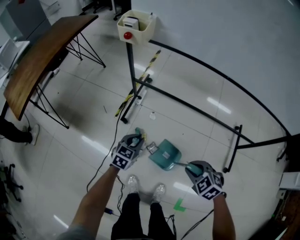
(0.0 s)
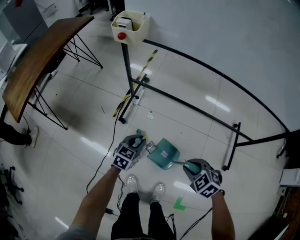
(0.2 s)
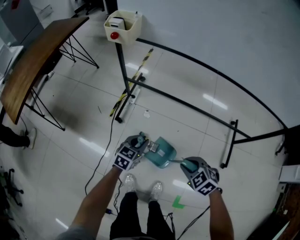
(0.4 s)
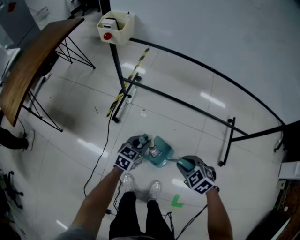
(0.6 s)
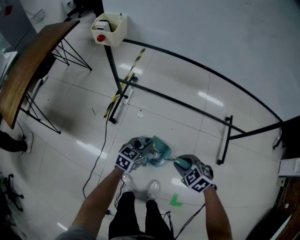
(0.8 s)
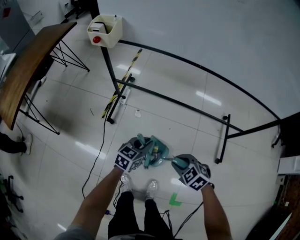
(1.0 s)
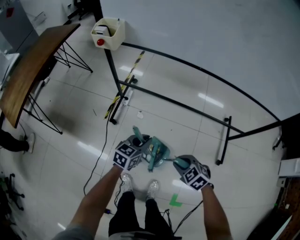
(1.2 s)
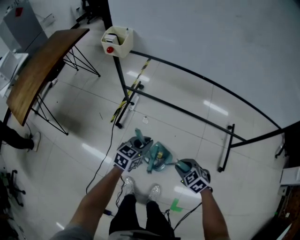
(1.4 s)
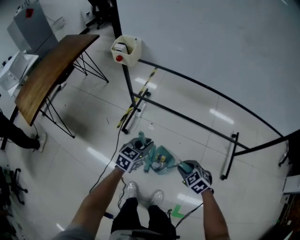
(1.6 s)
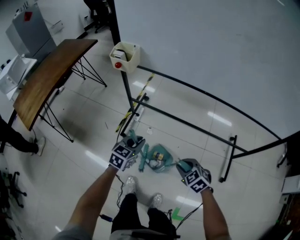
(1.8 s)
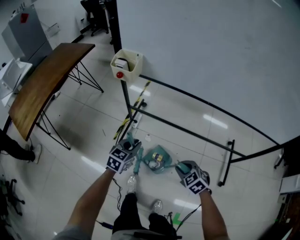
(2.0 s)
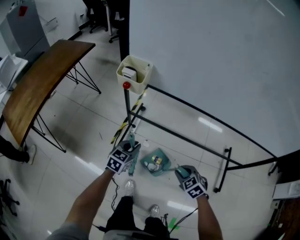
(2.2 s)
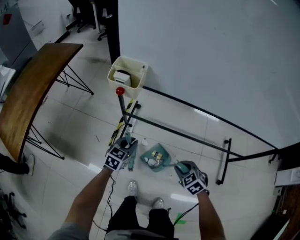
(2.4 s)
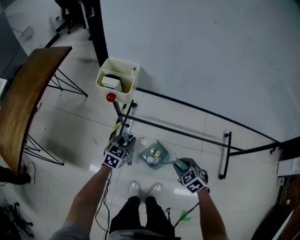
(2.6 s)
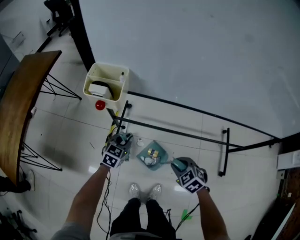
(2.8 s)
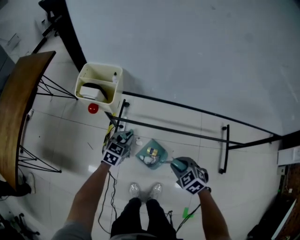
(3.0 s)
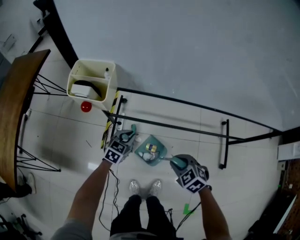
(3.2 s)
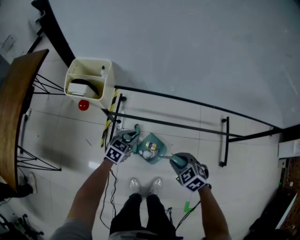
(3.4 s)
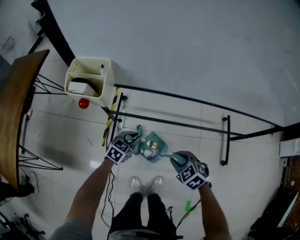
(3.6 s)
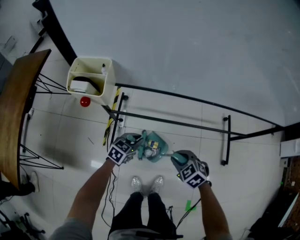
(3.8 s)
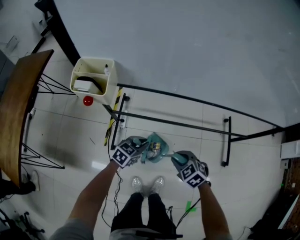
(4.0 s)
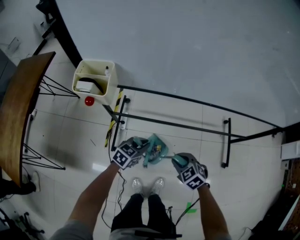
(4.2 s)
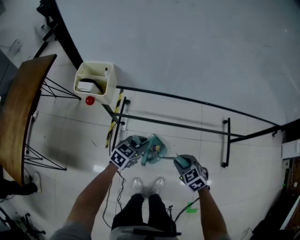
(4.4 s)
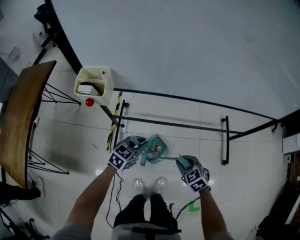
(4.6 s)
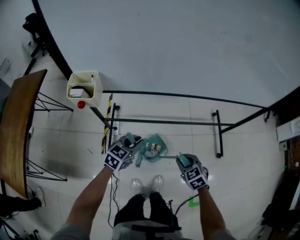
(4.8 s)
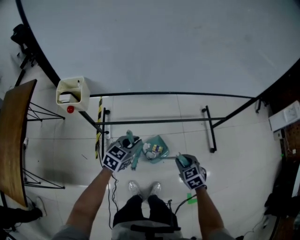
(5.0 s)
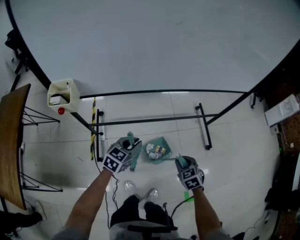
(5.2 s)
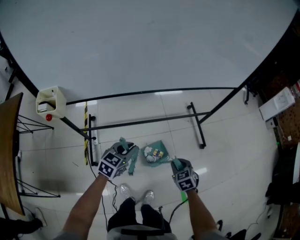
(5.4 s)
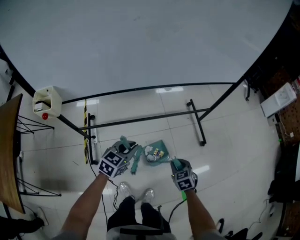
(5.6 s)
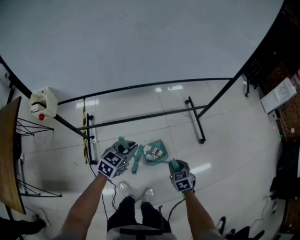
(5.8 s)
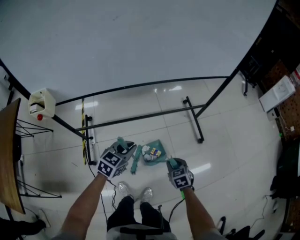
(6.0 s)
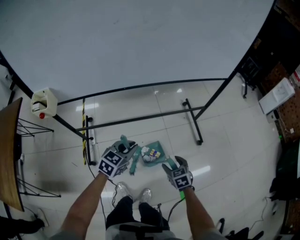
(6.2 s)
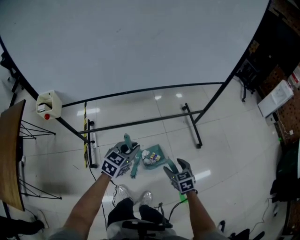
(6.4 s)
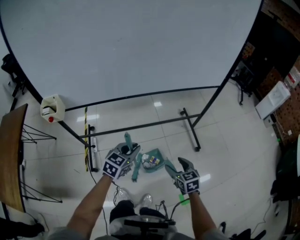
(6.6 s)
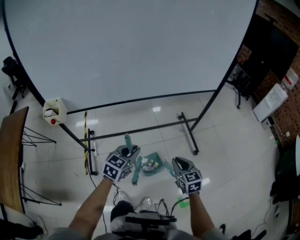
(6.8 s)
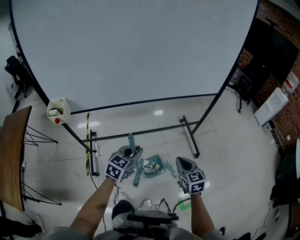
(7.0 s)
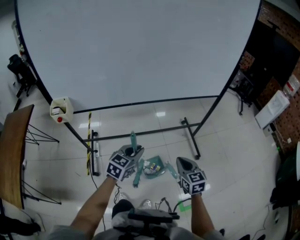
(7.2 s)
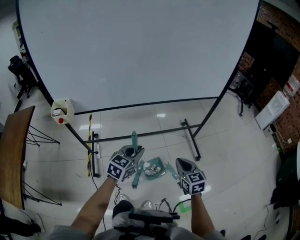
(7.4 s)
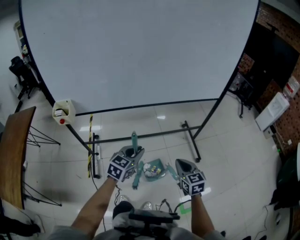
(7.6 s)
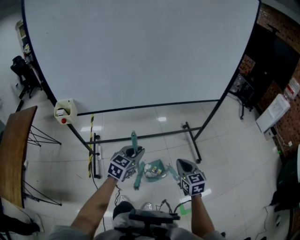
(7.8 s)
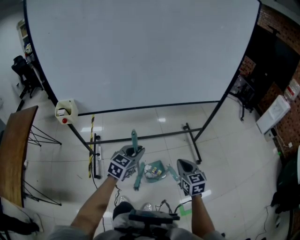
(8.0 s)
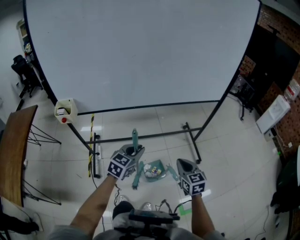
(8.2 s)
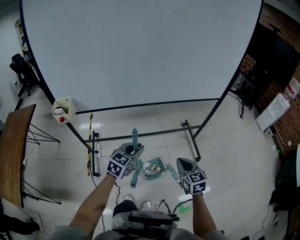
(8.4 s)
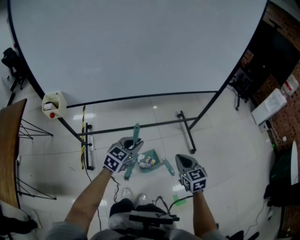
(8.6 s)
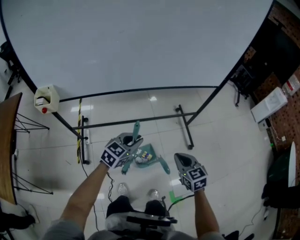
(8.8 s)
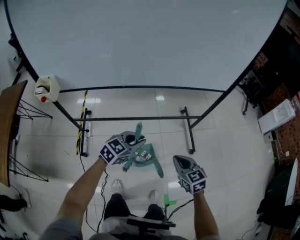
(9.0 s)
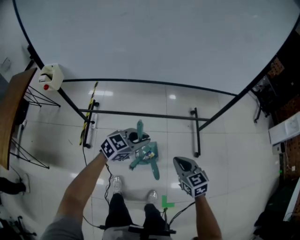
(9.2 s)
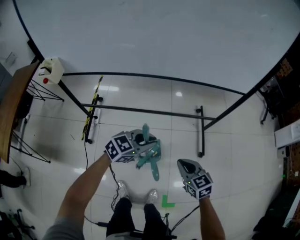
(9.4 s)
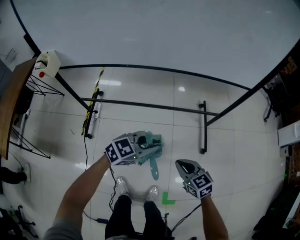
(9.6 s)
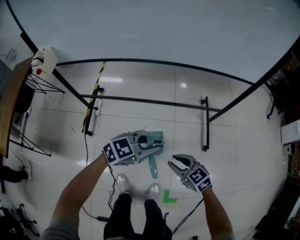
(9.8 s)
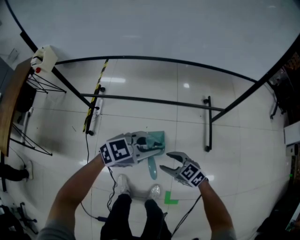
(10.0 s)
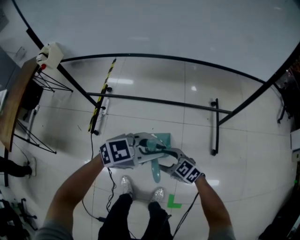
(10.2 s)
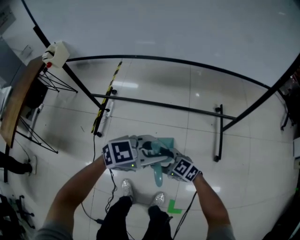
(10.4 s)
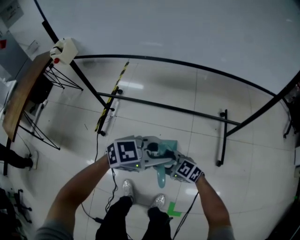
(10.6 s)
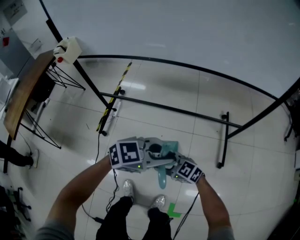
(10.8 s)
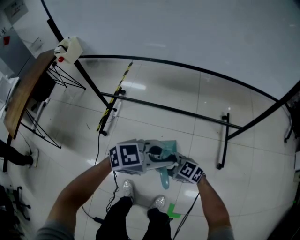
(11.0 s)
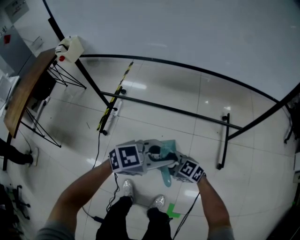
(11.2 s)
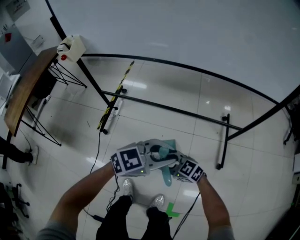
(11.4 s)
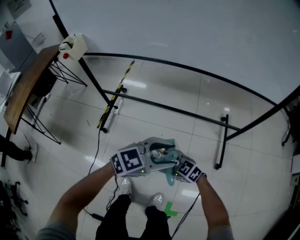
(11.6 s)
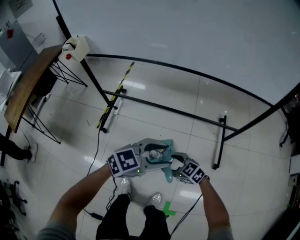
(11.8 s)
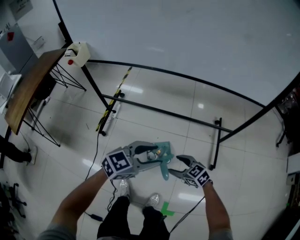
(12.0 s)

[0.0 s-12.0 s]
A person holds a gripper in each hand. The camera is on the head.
0.0 to 1.6 s: The left gripper shifts about 15 cm upward and to the right.
1.6 to 3.0 s: The grippers both shift forward and to the left by some 25 cm.
3.0 to 4.4 s: The left gripper shifts about 10 cm to the right and backward.
4.4 to 6.0 s: The left gripper shifts roughly 25 cm to the right and upward. The right gripper shifts some 25 cm to the right, and turns by about 40 degrees.
6.0 to 7.6 s: The right gripper moves upward, approximately 20 cm, turns by roughly 30 degrees, and opens, then closes once more; the left gripper travels upward by some 10 cm.
7.6 to 9.0 s: The right gripper travels to the right by some 5 cm, while the left gripper shifts about 10 cm to the right and downward.
9.0 to 10.4 s: The left gripper moves roughly 15 cm, while the right gripper moves downward, some 20 cm, swivels some 50 degrees, and opens.
10.4 to 12.0 s: The left gripper changes place by about 5 cm, changes its angle by approximately 20 degrees, and opens up. The right gripper ends up some 10 cm from where it was.

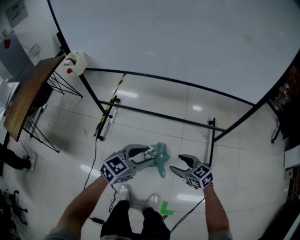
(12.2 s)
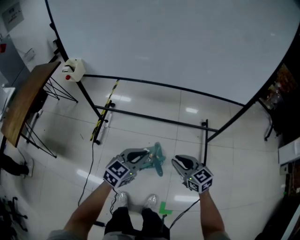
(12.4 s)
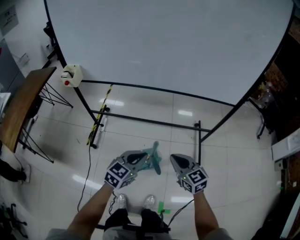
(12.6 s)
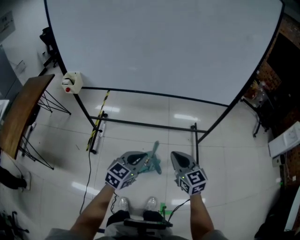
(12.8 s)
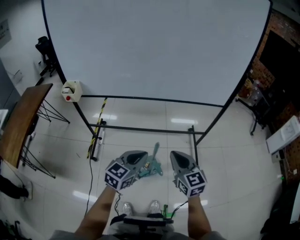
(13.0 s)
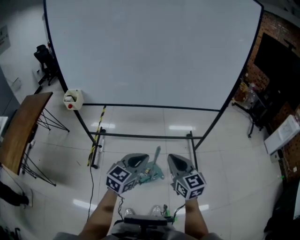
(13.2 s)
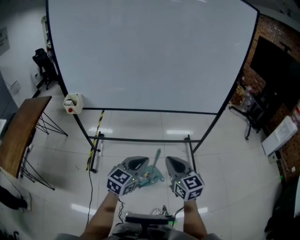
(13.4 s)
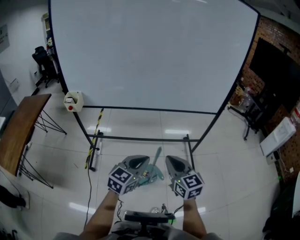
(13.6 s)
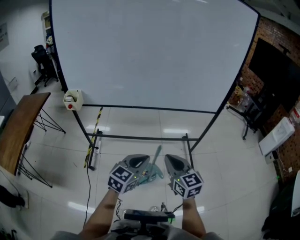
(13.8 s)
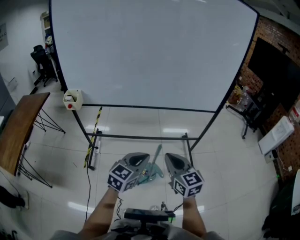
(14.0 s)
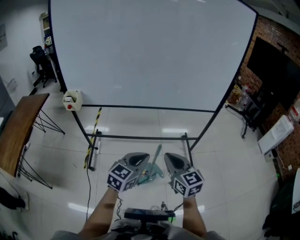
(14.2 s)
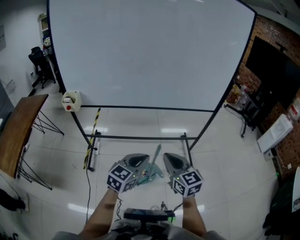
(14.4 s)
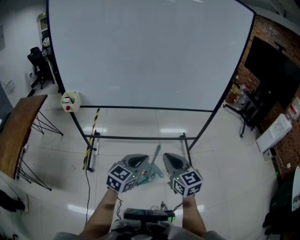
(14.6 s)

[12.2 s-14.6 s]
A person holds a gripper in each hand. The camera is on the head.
12.2 to 13.4 s: The left gripper heads upward, covering approximately 15 cm, and closes its fingers; the right gripper travels upward by about 30 cm, rotates roughly 40 degrees, and closes.
13.4 to 14.6 s: The grippers move only a little.

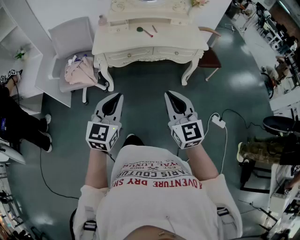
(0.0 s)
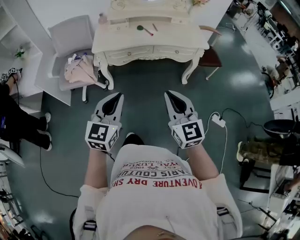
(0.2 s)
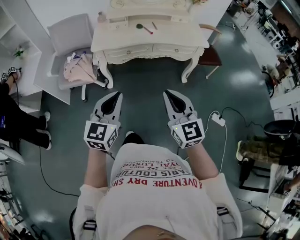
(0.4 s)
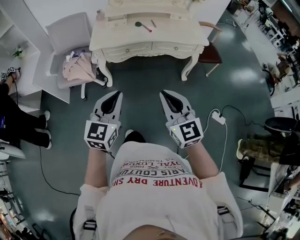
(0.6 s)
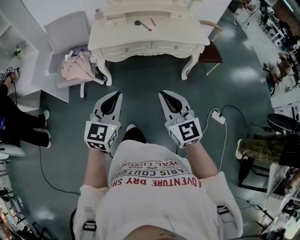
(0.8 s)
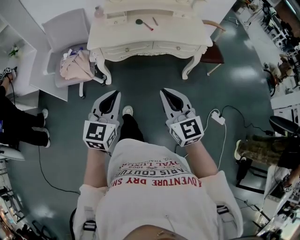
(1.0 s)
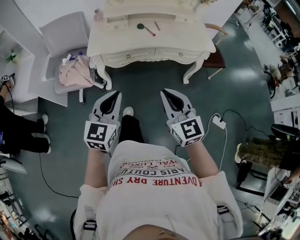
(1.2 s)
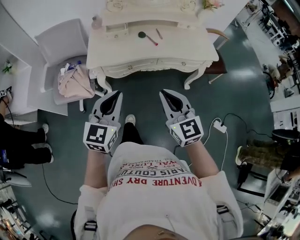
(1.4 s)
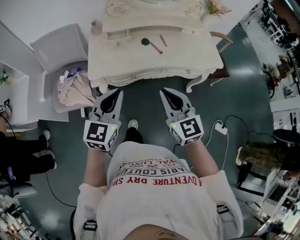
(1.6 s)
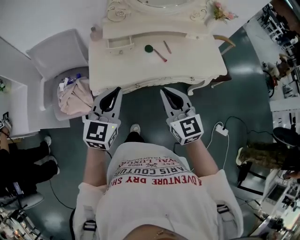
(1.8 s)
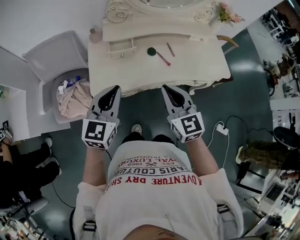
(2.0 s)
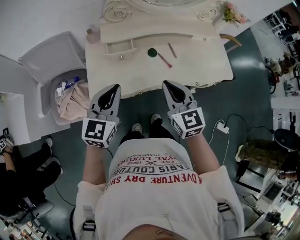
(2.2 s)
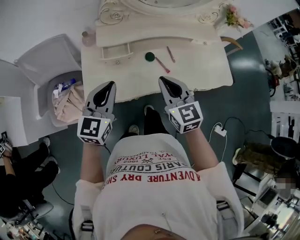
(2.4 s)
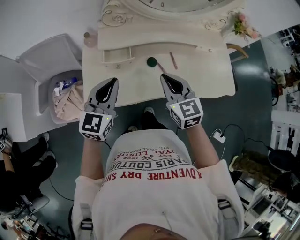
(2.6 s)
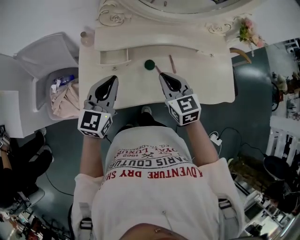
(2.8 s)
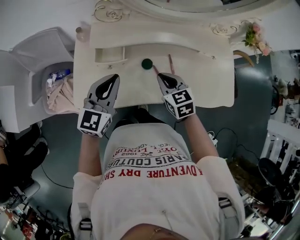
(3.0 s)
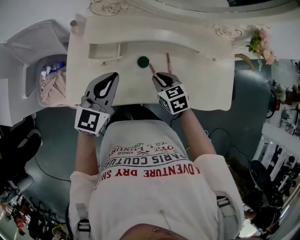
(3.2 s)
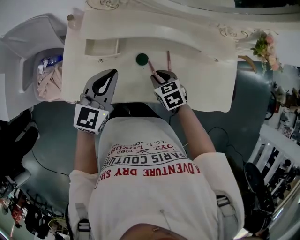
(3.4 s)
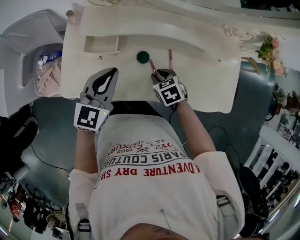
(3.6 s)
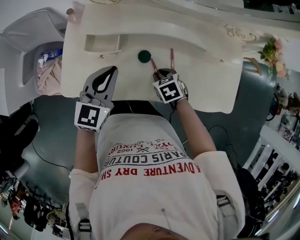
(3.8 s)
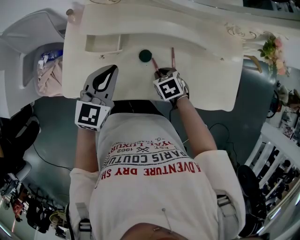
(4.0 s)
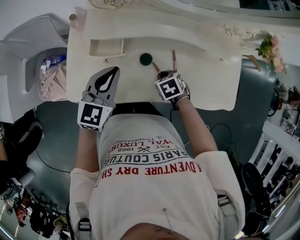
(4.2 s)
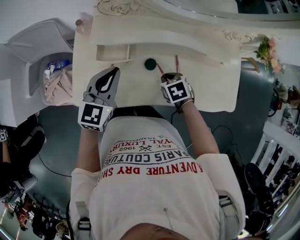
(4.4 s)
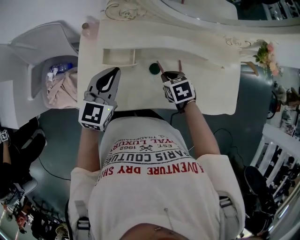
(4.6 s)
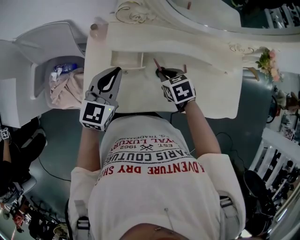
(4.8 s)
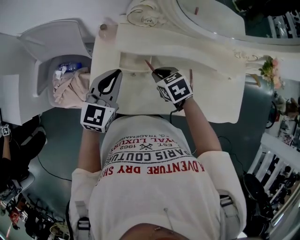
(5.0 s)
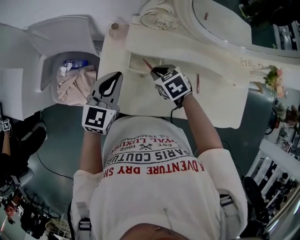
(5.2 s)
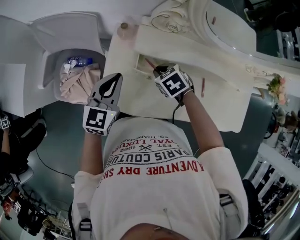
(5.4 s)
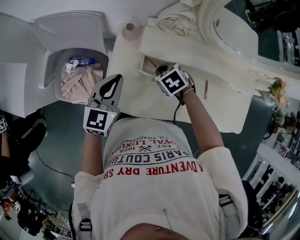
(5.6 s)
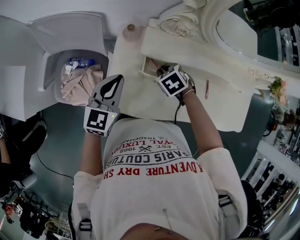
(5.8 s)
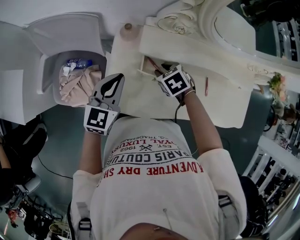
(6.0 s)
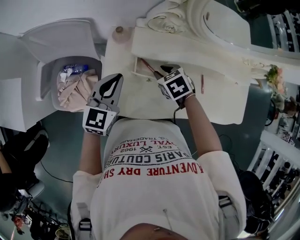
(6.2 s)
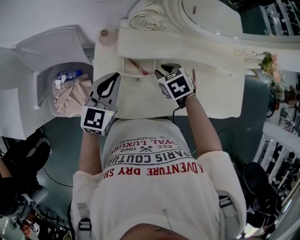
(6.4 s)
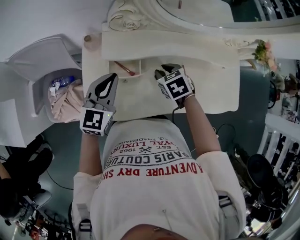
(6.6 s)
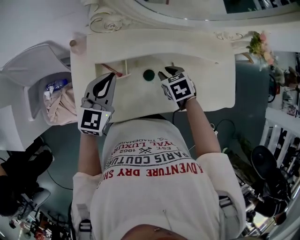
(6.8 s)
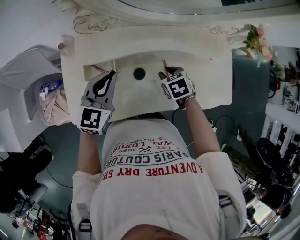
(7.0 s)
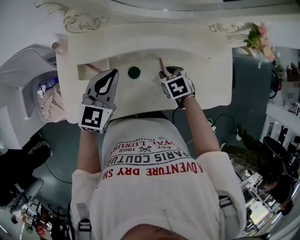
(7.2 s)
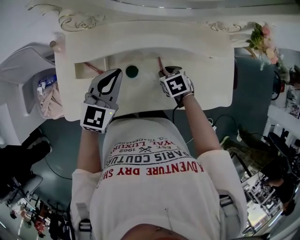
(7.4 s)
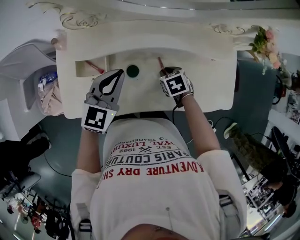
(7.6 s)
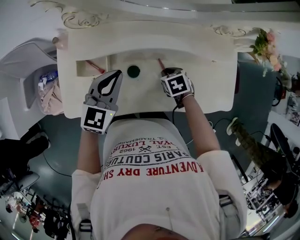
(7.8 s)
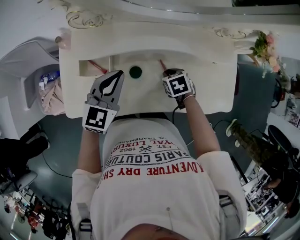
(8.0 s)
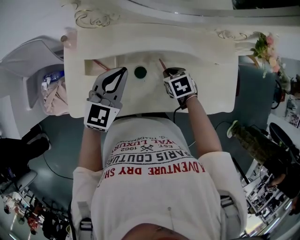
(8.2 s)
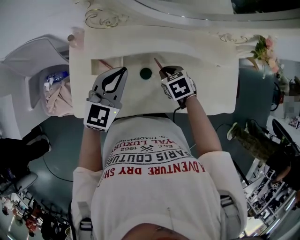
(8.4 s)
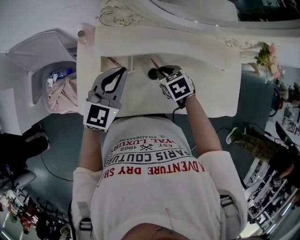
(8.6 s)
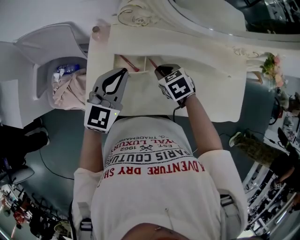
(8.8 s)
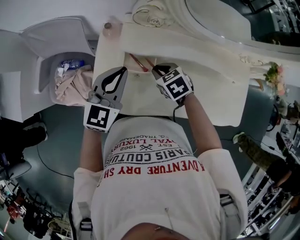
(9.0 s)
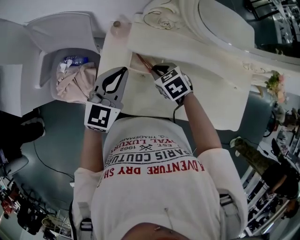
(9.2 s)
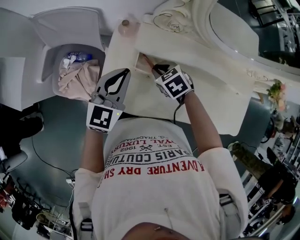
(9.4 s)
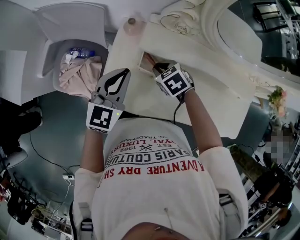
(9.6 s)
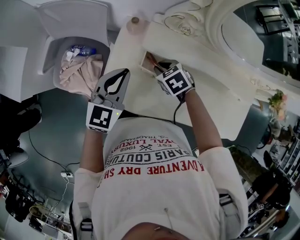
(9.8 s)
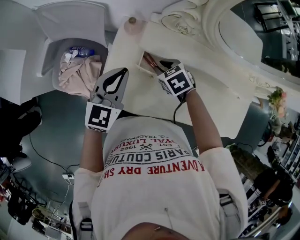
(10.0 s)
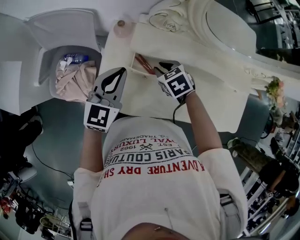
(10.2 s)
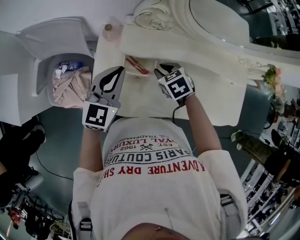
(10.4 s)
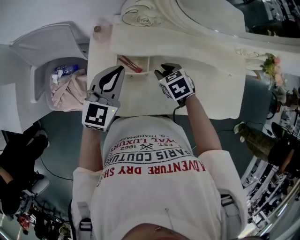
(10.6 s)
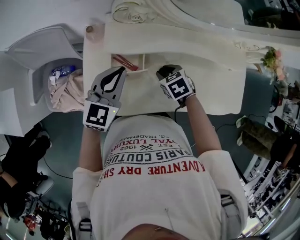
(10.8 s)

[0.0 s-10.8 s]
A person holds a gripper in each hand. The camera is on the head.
0.0 to 1.6 s: Both grippers travel together forward, some 30 cm.
1.6 to 3.0 s: The right gripper heads forward and downward, covering about 40 cm, and swivels about 30 degrees. The left gripper is displaced forward by approximately 35 cm.
3.0 to 4.6 s: The right gripper moves downward, approximately 5 cm, and swivels approximately 30 degrees. Meanwhile the left gripper travels forward by roughly 5 cm.
4.6 to 6.2 s: The left gripper moves to the left, roughly 15 cm. Meanwhile the right gripper is displaced to the left and forward by some 20 cm.
6.2 to 7.8 s: The grippers both shift to the right by roughly 30 cm.
7.8 to 9.2 s: The two grippers go about 25 cm to the left. The right gripper rotates roughly 30 degrees.
9.2 to 10.8 s: The right gripper moves to the right, approximately 10 cm. The left gripper goes roughly 5 cm to the right.
